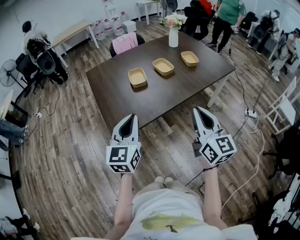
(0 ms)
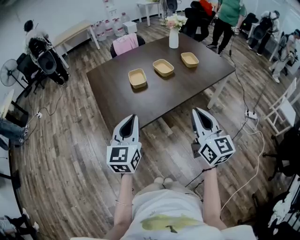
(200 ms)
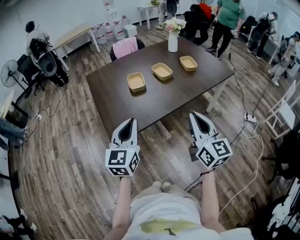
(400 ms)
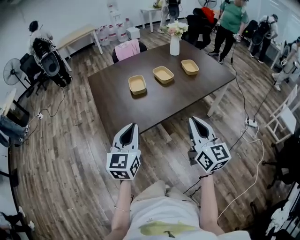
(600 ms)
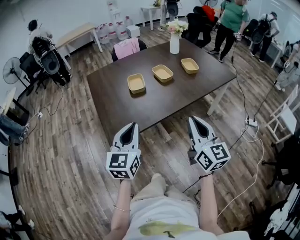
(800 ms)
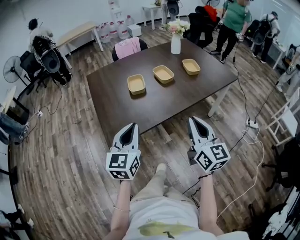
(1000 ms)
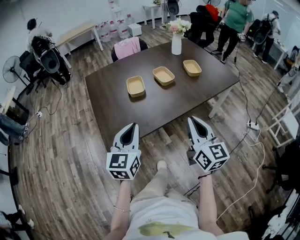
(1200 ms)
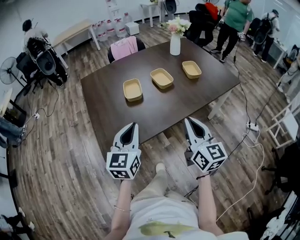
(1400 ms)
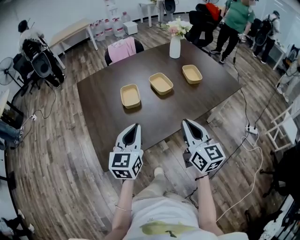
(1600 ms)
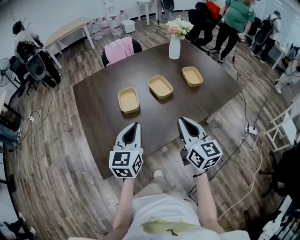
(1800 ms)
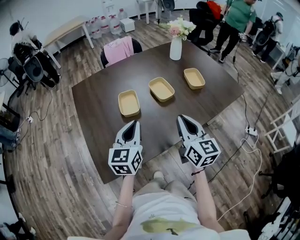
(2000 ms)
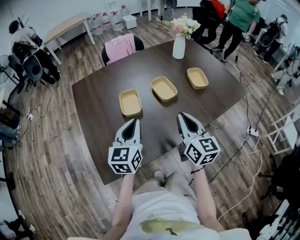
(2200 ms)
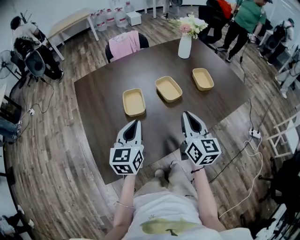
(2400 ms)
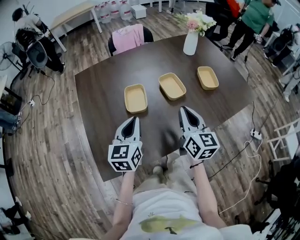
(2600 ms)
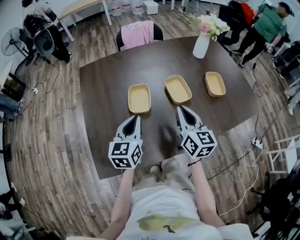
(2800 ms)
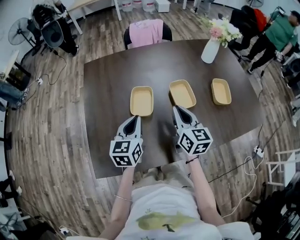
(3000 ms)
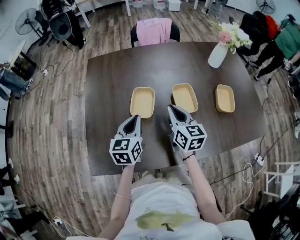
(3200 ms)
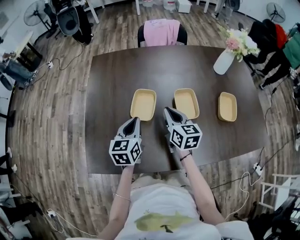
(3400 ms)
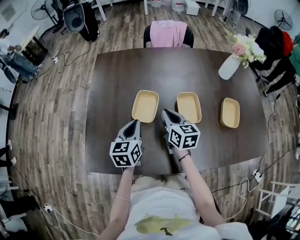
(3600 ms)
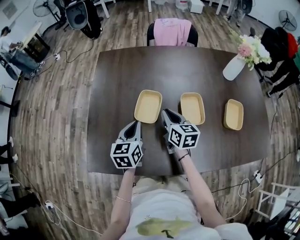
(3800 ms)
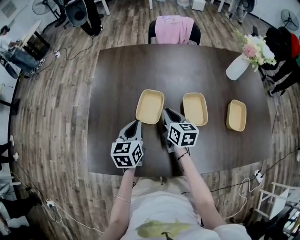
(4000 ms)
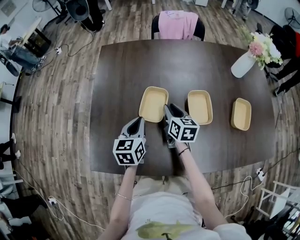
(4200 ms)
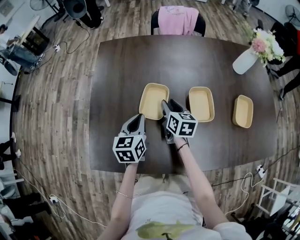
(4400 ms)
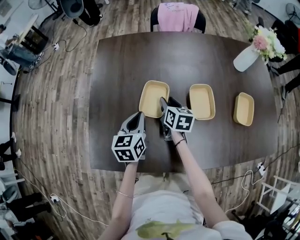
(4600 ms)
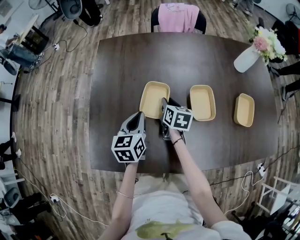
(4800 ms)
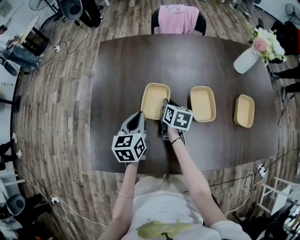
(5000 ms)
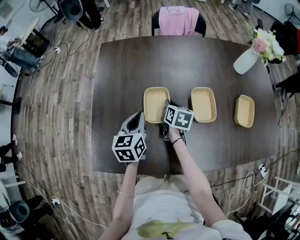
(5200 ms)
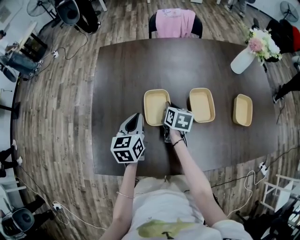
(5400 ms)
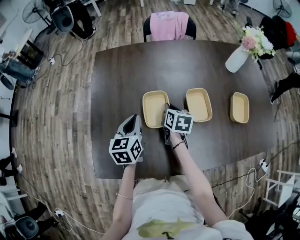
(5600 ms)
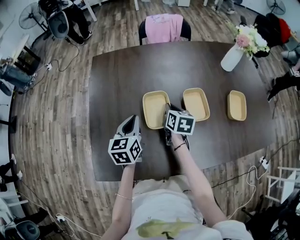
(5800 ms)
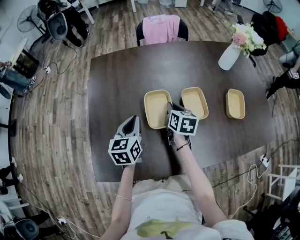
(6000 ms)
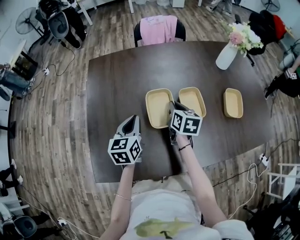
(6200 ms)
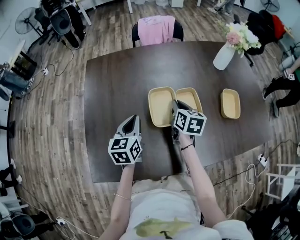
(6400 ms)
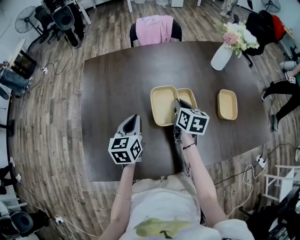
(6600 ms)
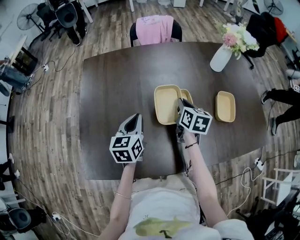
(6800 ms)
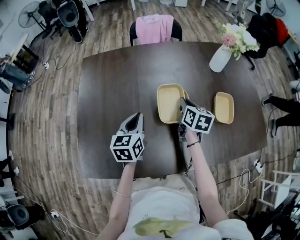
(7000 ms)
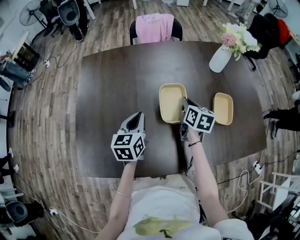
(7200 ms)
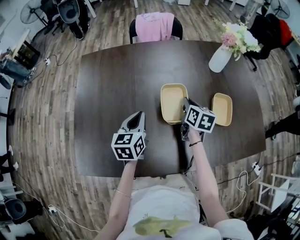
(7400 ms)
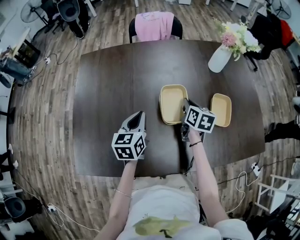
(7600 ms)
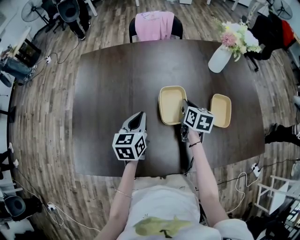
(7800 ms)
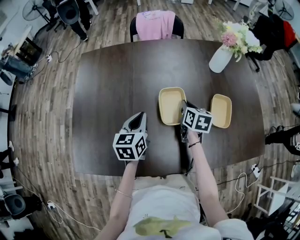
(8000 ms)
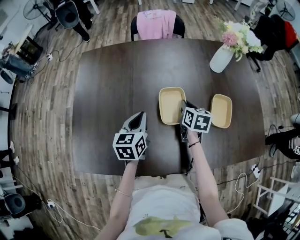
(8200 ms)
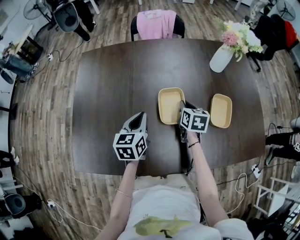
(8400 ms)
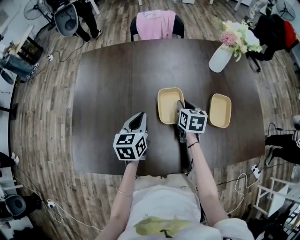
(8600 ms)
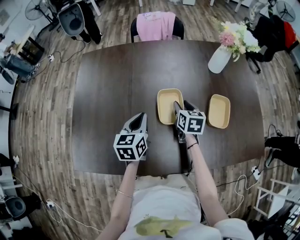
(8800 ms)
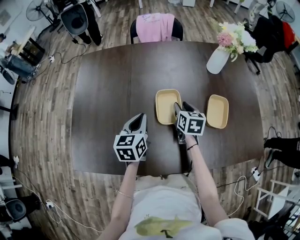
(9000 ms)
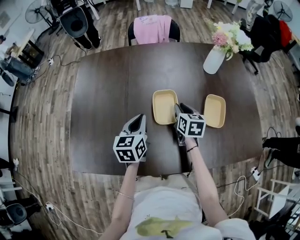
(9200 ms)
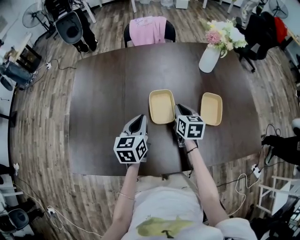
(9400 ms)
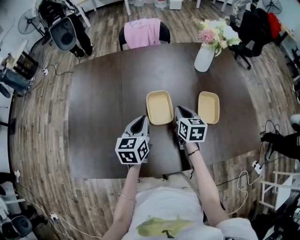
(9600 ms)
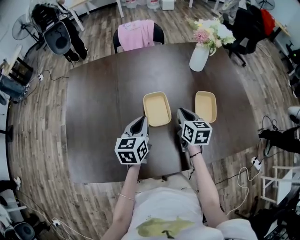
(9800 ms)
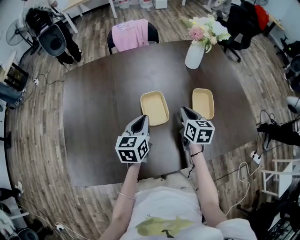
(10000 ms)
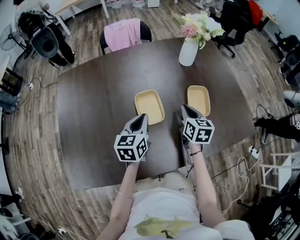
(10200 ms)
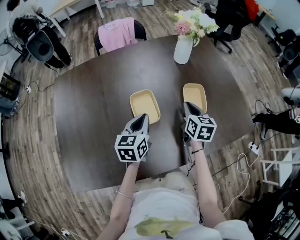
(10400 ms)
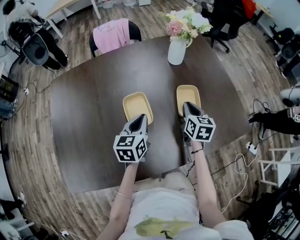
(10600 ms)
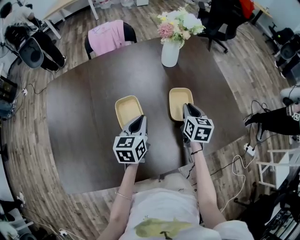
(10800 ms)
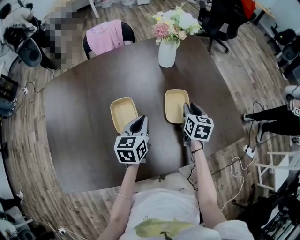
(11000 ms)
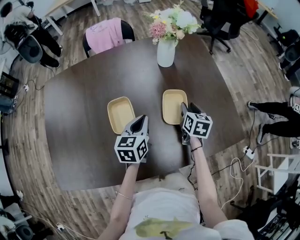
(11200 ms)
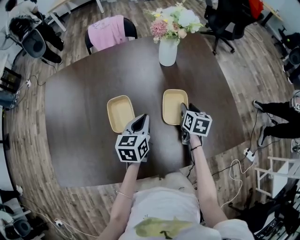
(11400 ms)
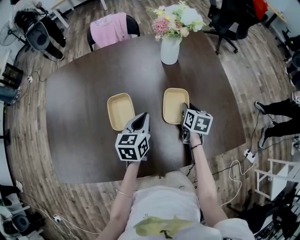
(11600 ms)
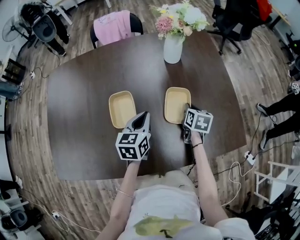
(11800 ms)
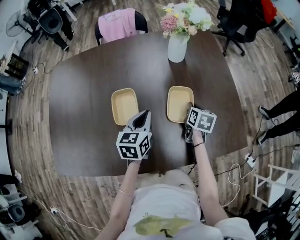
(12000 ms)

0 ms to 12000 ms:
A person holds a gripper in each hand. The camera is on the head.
0 ms to 1600 ms: Both grippers travel together forward, some 15 cm.
1600 ms to 3000 ms: The right gripper goes some 25 cm forward. The left gripper travels forward and downward by some 20 cm, and changes its angle by approximately 20 degrees.
3000 ms to 4400 ms: The right gripper moves downward, forward and to the left, about 20 cm, rotates about 20 degrees, and opens its fingers; the left gripper goes roughly 5 cm downward.
4400 ms to 6000 ms: The right gripper closes.
6000 ms to 7600 ms: The grippers both shift to the right by some 15 cm.
7600 ms to 9000 ms: The right gripper opens up.
9000 ms to 10400 ms: Both grippers move to the right, about 10 cm. The right gripper closes up.
10400 ms to 12000 ms: The left gripper heads to the right, covering about 10 cm; the right gripper goes about 15 cm to the right, downward and forward, and opens, then closes again.

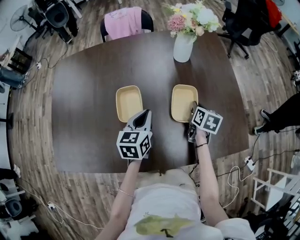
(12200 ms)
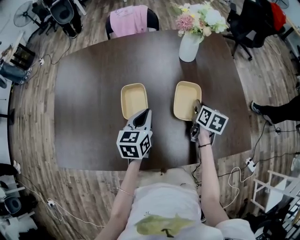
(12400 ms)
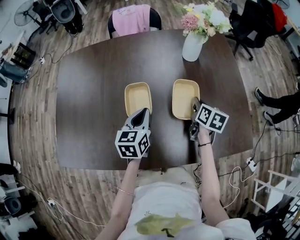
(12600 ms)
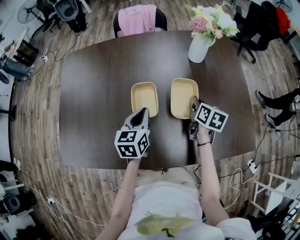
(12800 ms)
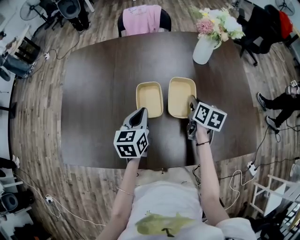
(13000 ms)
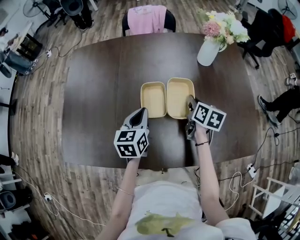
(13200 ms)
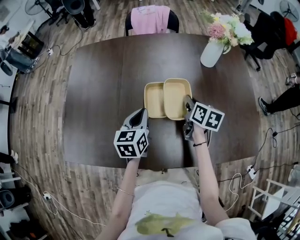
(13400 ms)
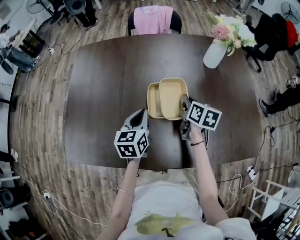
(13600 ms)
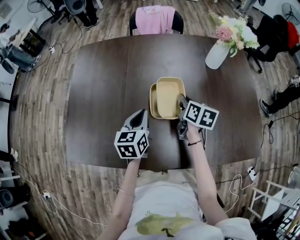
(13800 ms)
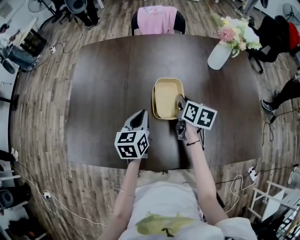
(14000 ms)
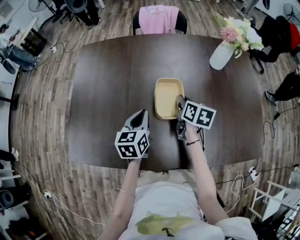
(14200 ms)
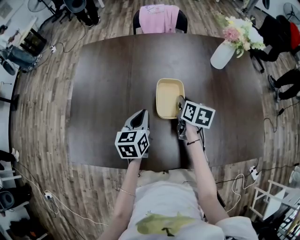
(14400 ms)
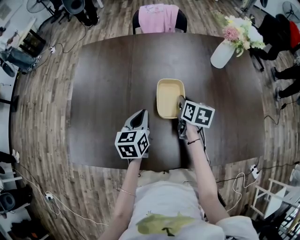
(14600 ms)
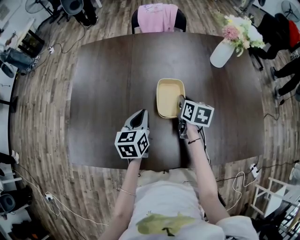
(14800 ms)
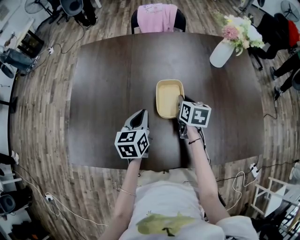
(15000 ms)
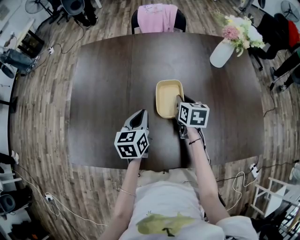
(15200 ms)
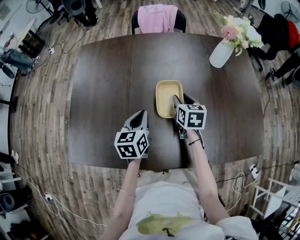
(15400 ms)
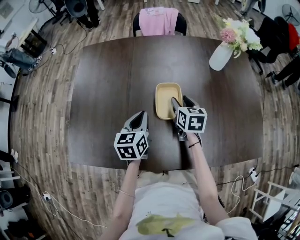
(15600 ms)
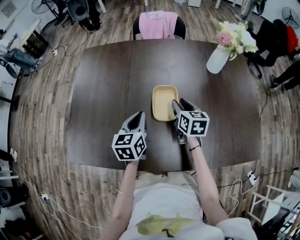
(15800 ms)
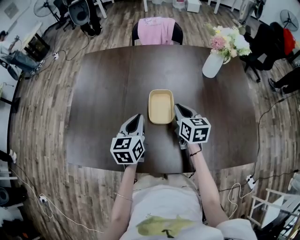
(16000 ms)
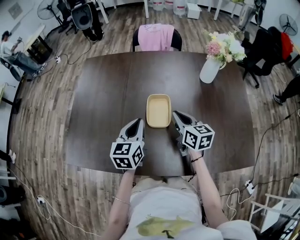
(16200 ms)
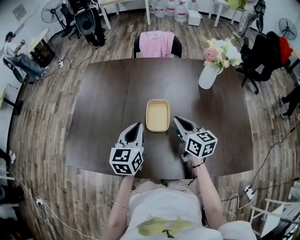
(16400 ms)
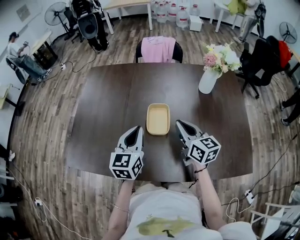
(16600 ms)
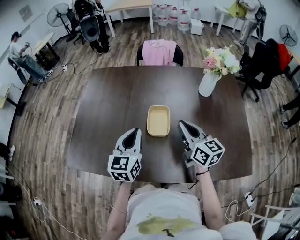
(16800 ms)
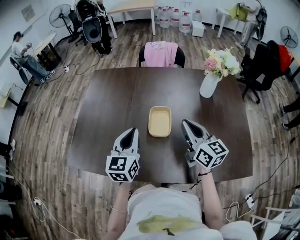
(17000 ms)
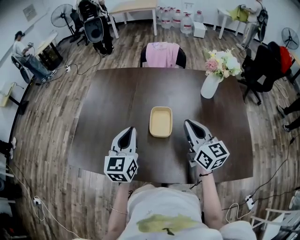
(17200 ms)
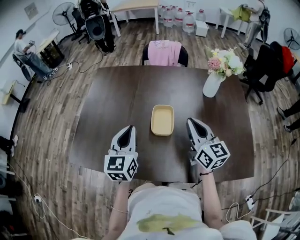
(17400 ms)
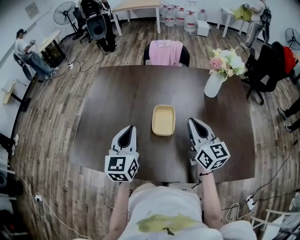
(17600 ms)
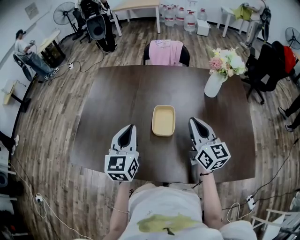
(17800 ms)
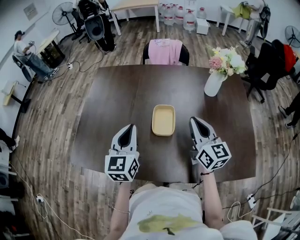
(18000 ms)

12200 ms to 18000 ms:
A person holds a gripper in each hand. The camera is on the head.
12200 ms to 13600 ms: The two grippers go roughly 20 cm to the left.
13600 ms to 15000 ms: The right gripper goes about 5 cm to the left.
15000 ms to 16600 ms: The left gripper goes roughly 10 cm upward. The right gripper shifts about 15 cm upward and backward, angles its fingers upward, by some 30 degrees, and opens, then closes again.
16600 ms to 18000 ms: The left gripper moves approximately 5 cm; the right gripper goes some 5 cm upward.

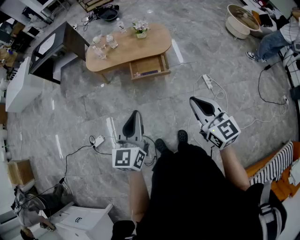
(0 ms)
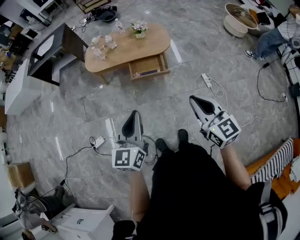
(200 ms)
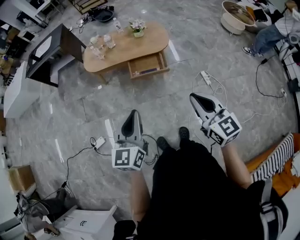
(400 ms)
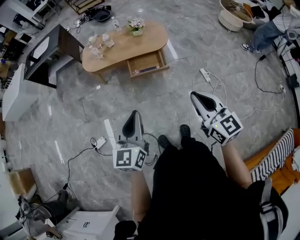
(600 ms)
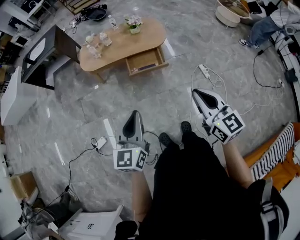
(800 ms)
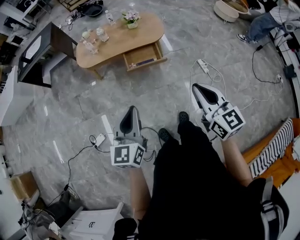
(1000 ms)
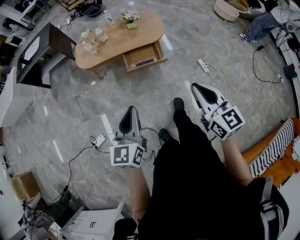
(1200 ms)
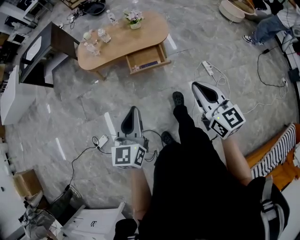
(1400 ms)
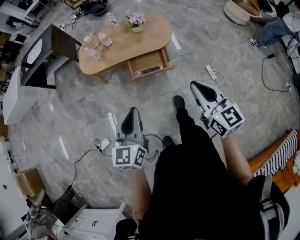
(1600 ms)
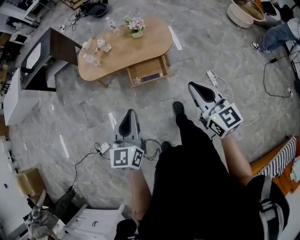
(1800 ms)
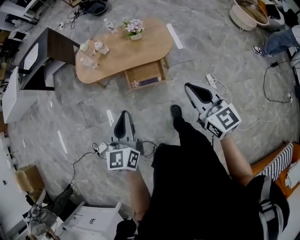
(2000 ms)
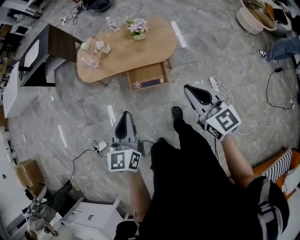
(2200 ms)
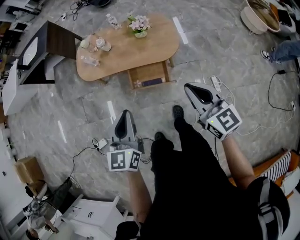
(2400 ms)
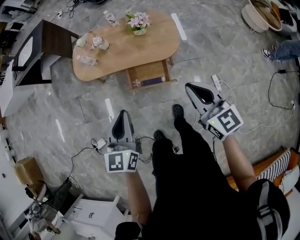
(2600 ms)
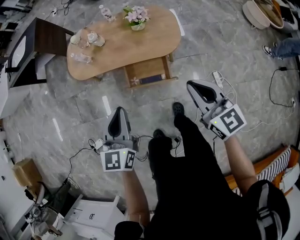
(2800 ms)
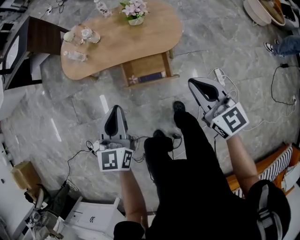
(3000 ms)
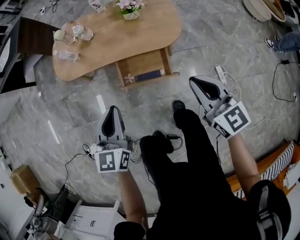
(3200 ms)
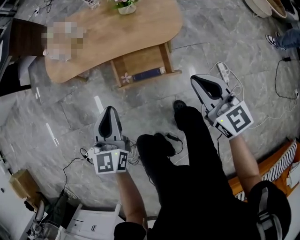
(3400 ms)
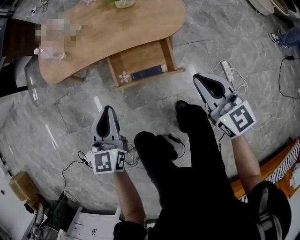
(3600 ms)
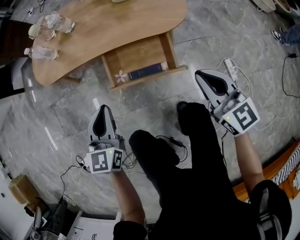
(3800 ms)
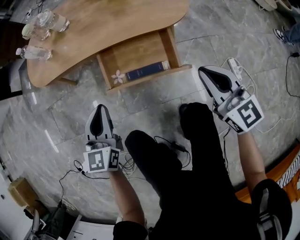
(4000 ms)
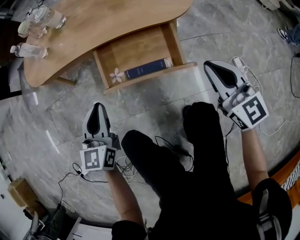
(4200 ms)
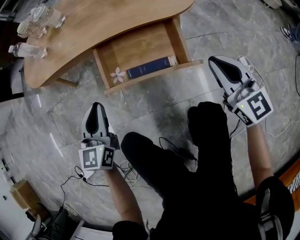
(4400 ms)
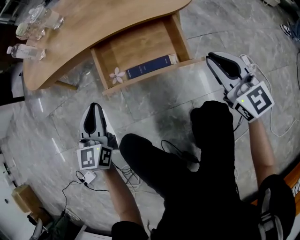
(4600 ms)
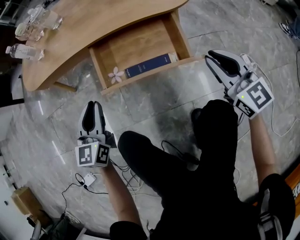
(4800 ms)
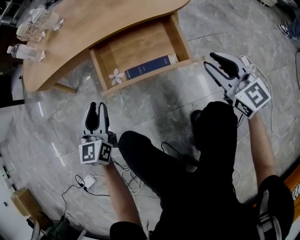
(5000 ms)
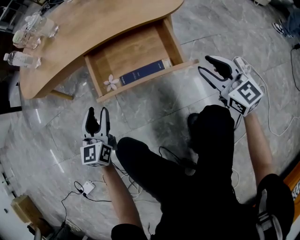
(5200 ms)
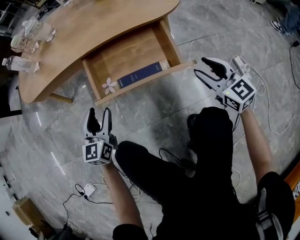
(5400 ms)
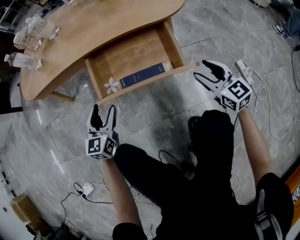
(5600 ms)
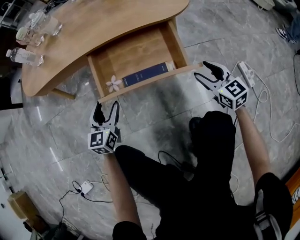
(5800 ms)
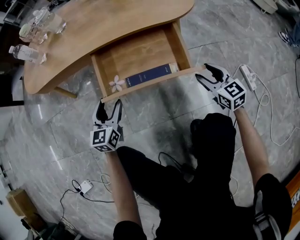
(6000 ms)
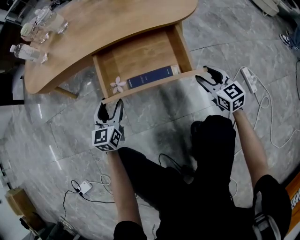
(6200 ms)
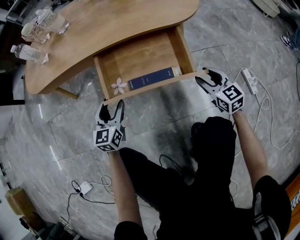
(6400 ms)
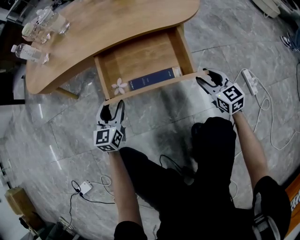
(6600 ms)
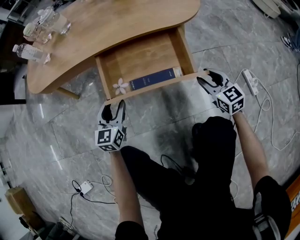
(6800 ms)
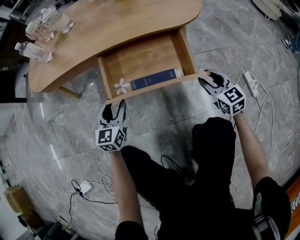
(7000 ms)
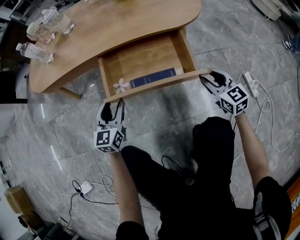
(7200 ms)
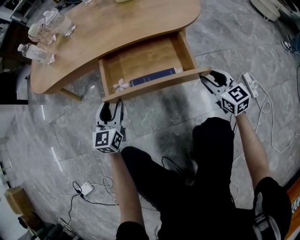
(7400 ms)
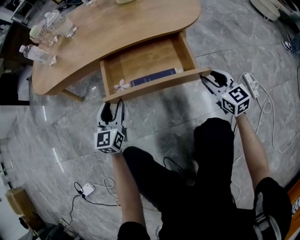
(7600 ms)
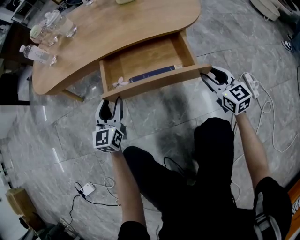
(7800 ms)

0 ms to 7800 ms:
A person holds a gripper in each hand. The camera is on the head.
0 ms to 1600 ms: Both grippers move forward, about 15 cm.
1600 ms to 3200 ms: Both grippers move forward and downward, some 35 cm.
3200 ms to 4600 ms: Both grippers move downward, roughly 35 cm.
4600 ms to 6200 ms: Both grippers move downward, roughly 15 cm. The right gripper opens. The left gripper opens.
6200 ms to 7800 ms: Both grippers move upward, about 5 cm.
